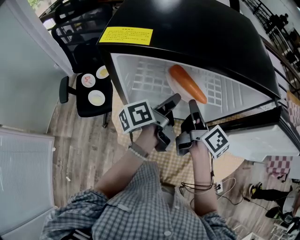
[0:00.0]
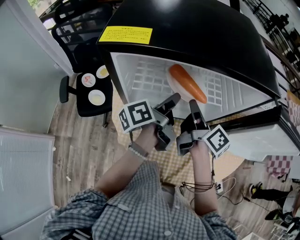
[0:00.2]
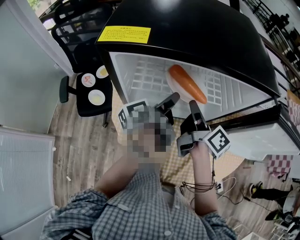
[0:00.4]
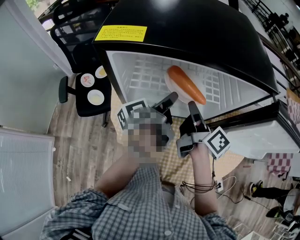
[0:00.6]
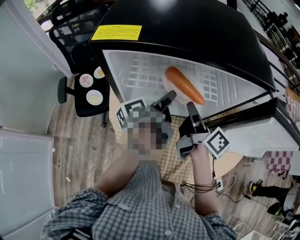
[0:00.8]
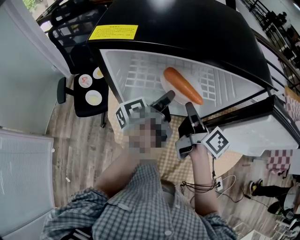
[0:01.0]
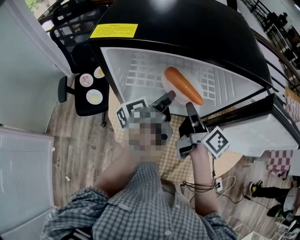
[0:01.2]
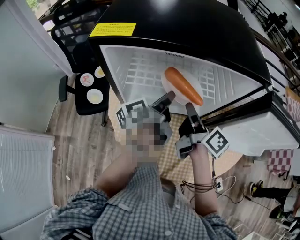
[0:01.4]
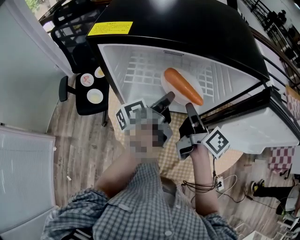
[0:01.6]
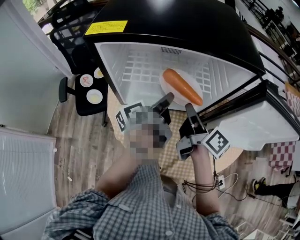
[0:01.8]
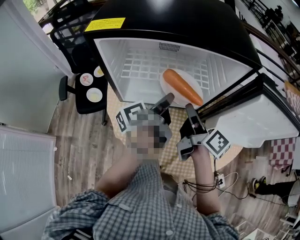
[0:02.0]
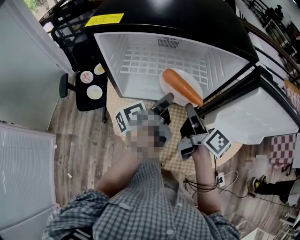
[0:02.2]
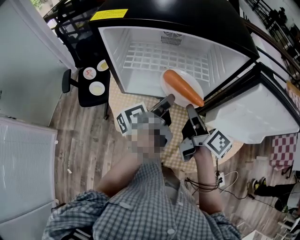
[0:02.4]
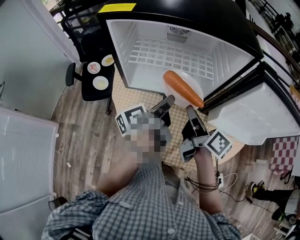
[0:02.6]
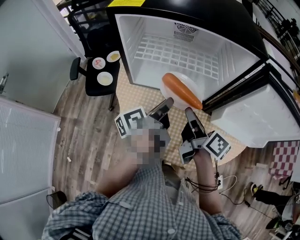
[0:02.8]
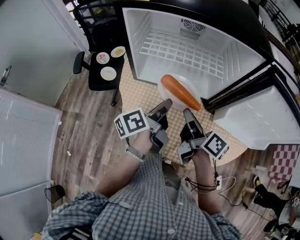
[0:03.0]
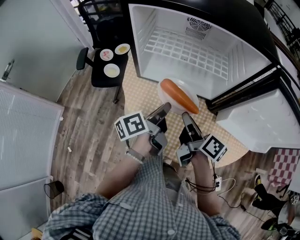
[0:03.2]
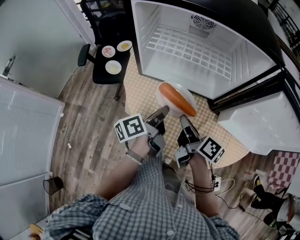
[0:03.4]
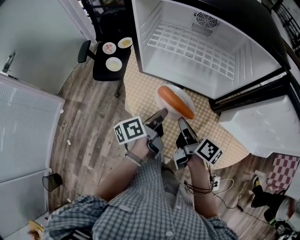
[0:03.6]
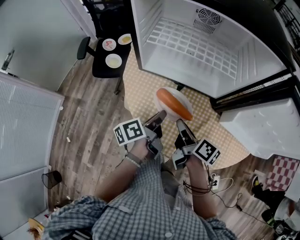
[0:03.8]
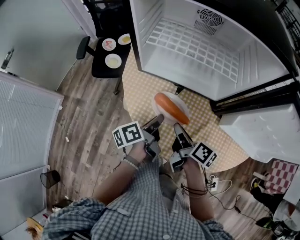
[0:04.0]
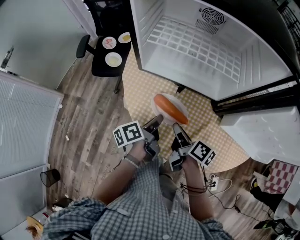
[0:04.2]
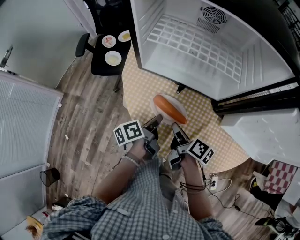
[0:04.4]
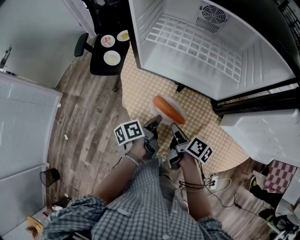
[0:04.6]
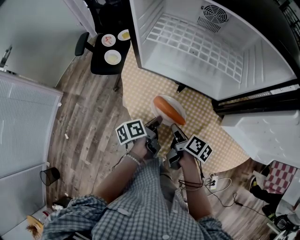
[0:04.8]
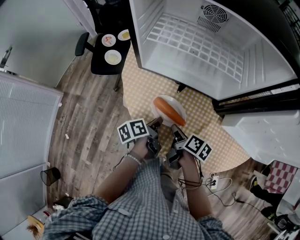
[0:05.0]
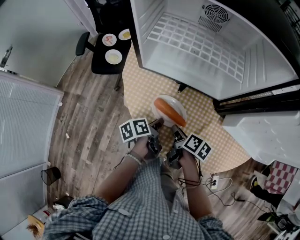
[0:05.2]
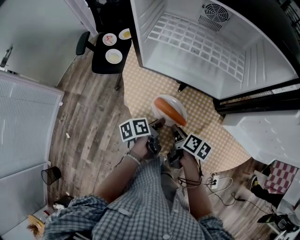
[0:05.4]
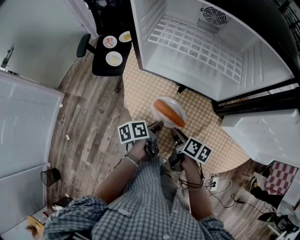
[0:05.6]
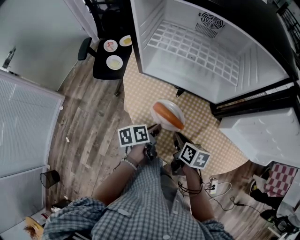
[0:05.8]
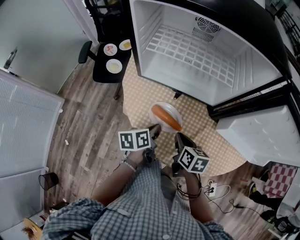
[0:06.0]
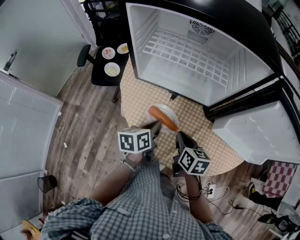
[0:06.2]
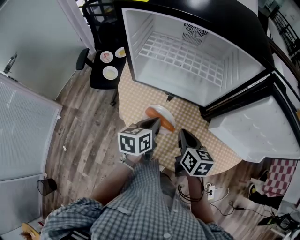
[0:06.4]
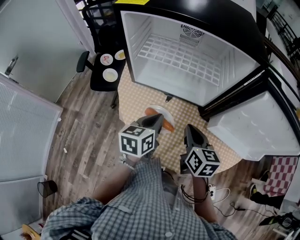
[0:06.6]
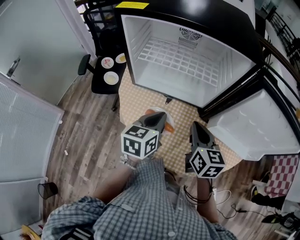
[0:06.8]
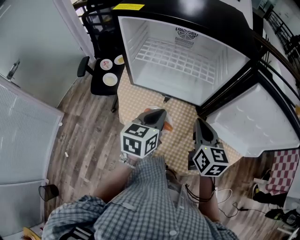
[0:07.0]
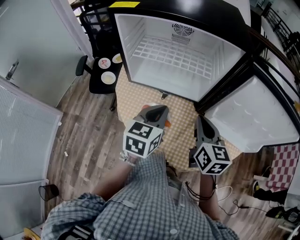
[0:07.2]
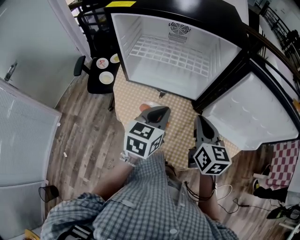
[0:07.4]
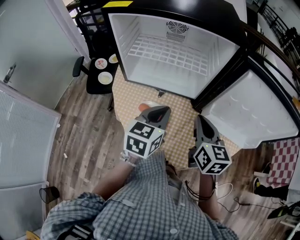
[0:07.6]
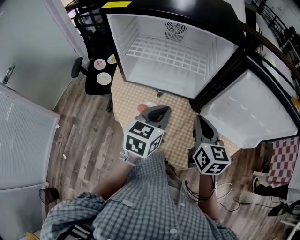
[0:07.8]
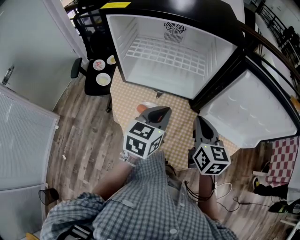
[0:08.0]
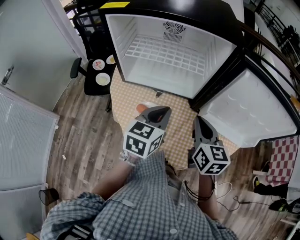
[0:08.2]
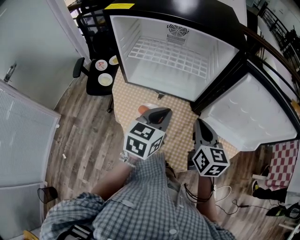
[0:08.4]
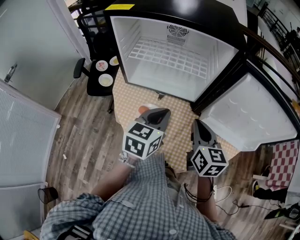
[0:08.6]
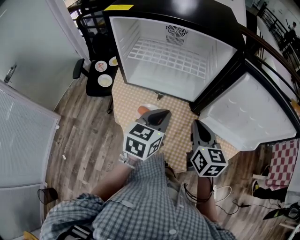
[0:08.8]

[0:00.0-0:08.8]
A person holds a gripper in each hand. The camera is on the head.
0:00.0 to 0:01.4: The grippers make only small movements.
0:01.4 to 0:03.0: Both grippers move backward, roughly 10 cm.
0:03.0 to 0:04.4: Both grippers travel together downward, about 15 cm. The right gripper rotates about 20 degrees.
0:04.4 to 0:05.8: The left gripper rotates approximately 20 degrees, while the right gripper changes its angle by some 30 degrees.
0:05.8 to 0:07.4: The grippers both shift upward and to the right by about 25 cm. The right gripper swivels approximately 40 degrees, while the left gripper rotates around the line of its fingers by approximately 60 degrees, clockwise from behind.
0:07.4 to 0:08.8: There are only small adjustments of the grippers.

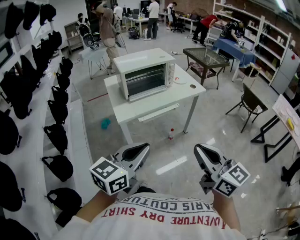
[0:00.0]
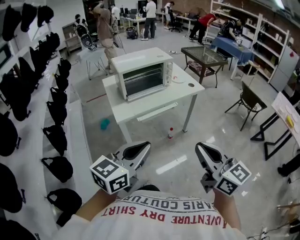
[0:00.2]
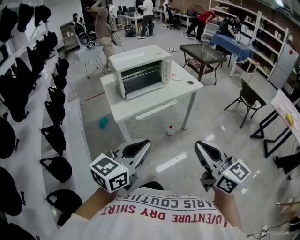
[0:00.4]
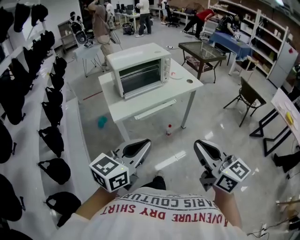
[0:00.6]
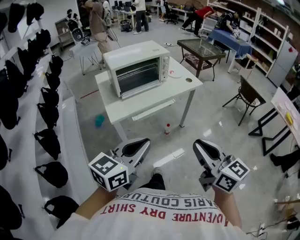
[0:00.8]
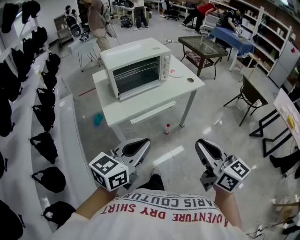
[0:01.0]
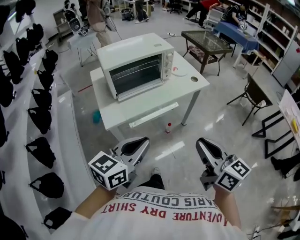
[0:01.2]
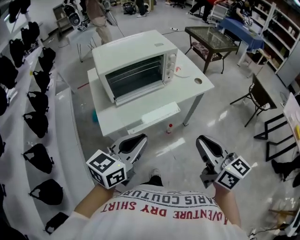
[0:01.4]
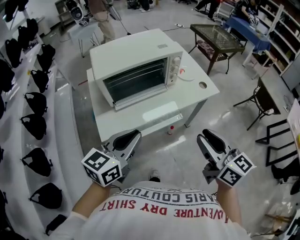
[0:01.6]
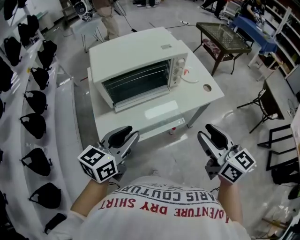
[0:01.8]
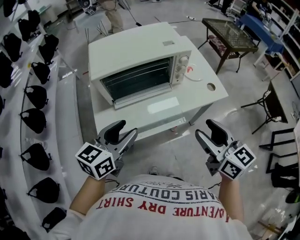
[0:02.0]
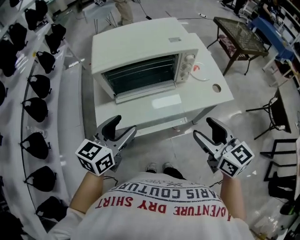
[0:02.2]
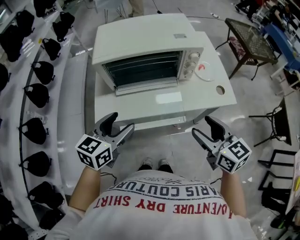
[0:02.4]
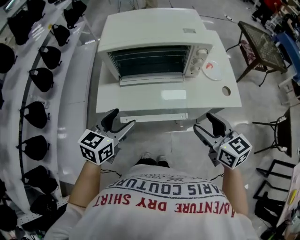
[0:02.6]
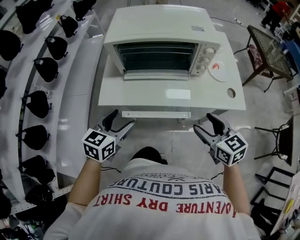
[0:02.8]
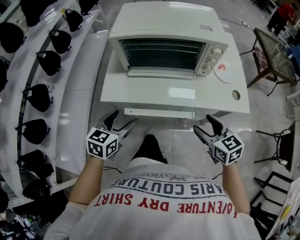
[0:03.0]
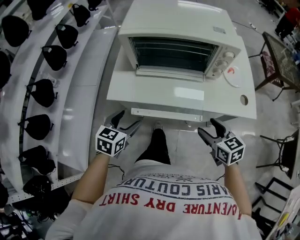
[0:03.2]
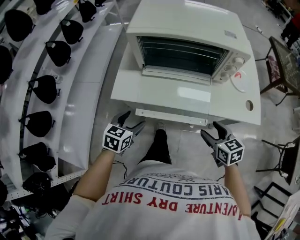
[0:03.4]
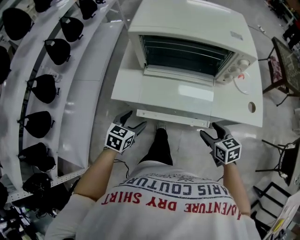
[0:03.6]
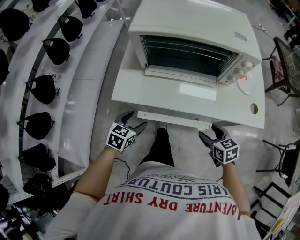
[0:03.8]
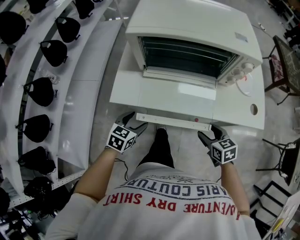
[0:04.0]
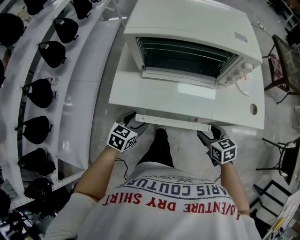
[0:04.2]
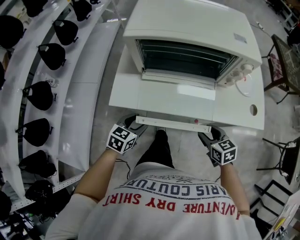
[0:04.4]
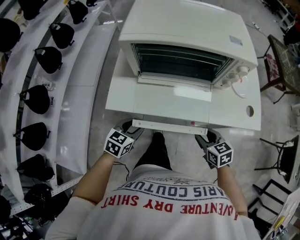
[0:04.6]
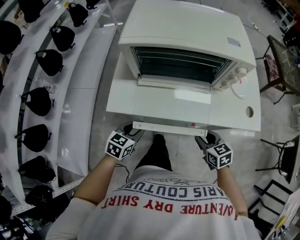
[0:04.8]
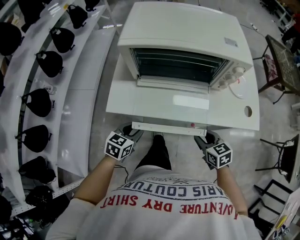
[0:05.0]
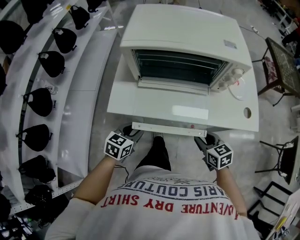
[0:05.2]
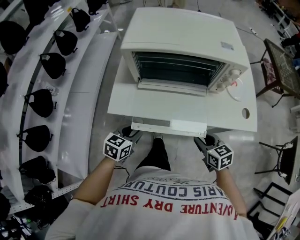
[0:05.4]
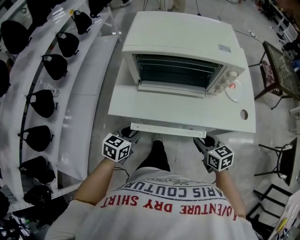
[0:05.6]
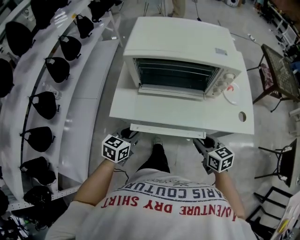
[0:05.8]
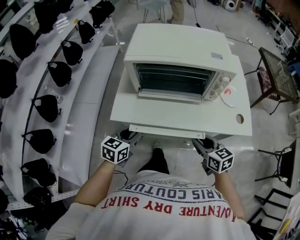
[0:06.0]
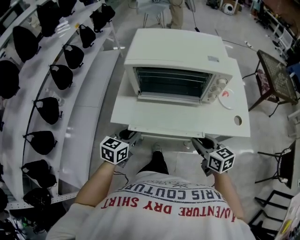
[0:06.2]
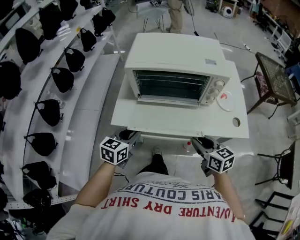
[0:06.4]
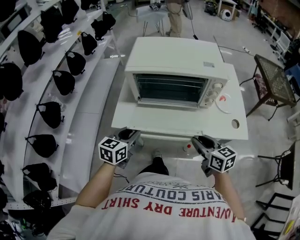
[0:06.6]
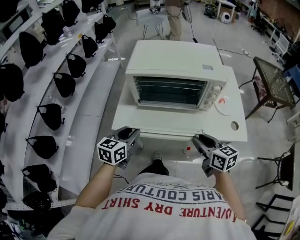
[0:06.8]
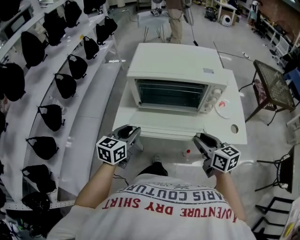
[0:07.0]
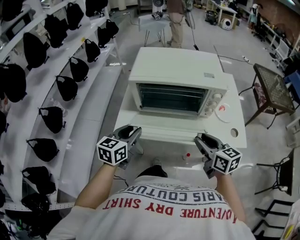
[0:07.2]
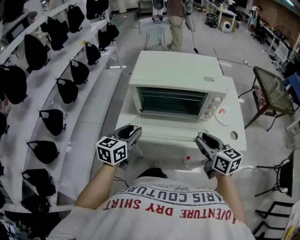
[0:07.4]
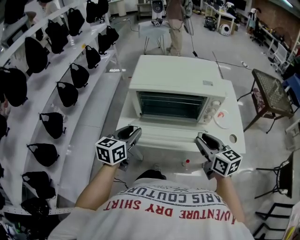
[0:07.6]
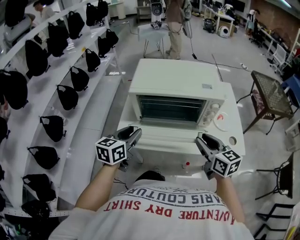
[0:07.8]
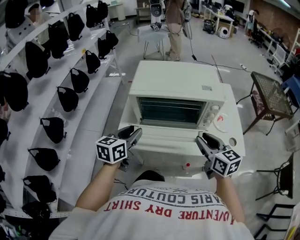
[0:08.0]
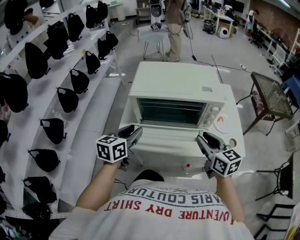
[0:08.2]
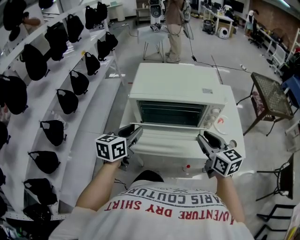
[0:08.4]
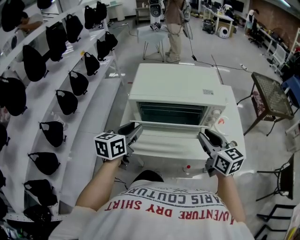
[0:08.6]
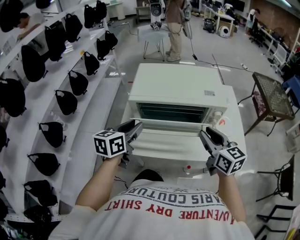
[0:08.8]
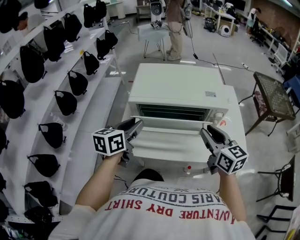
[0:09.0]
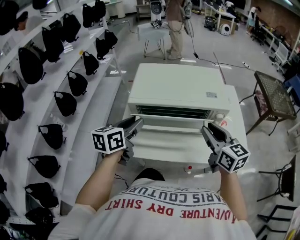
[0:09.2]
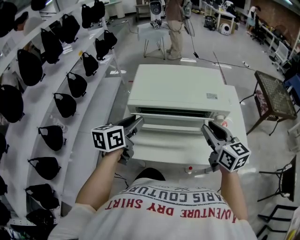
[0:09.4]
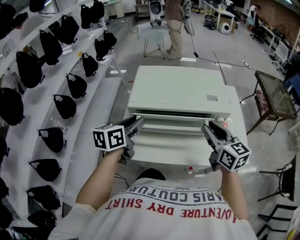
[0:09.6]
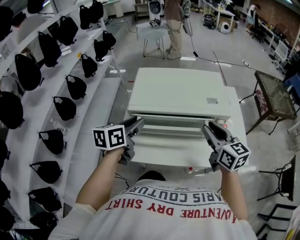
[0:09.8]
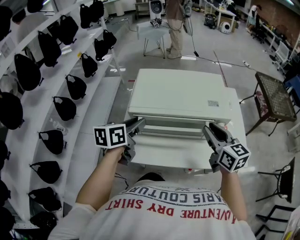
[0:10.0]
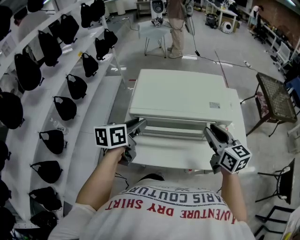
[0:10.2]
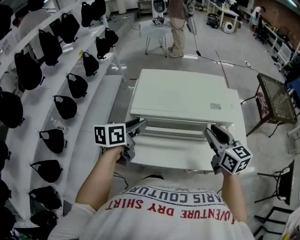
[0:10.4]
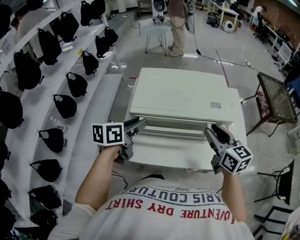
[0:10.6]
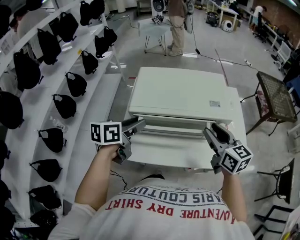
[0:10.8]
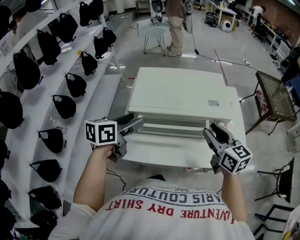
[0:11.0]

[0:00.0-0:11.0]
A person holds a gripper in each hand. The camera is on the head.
0:00.0 to 0:01.6: Both grippers travel together forward, roughly 30 cm.
0:01.6 to 0:03.2: The grippers both shift downward by some 20 cm. The right gripper changes its angle by some 40 degrees, and opens its fingers, while the left gripper turns by approximately 40 degrees, and opens up.
0:03.2 to 0:04.8: Both grippers travel together downward, some 10 cm. The left gripper closes its fingers, while the right gripper closes up.
0:04.8 to 0:06.2: Both grippers travel together upward, approximately 10 cm.
0:06.2 to 0:07.8: The two grippers go about 15 cm upward and forward.
0:07.8 to 0:09.4: The left gripper shifts roughly 10 cm forward; the right gripper moves forward and upward, some 10 cm.
0:09.4 to 0:11.0: The left gripper opens.

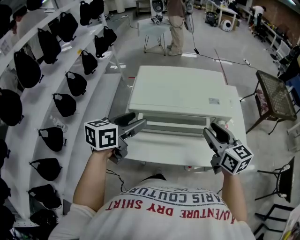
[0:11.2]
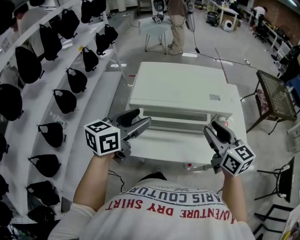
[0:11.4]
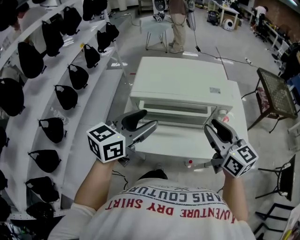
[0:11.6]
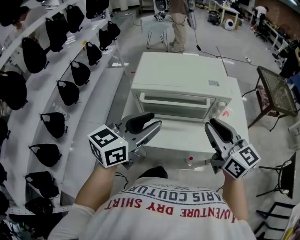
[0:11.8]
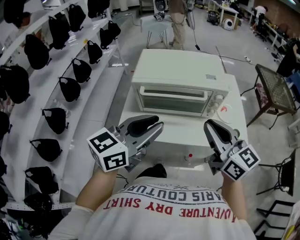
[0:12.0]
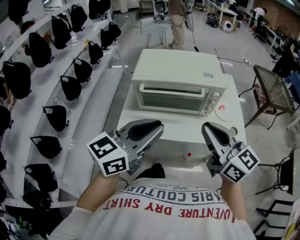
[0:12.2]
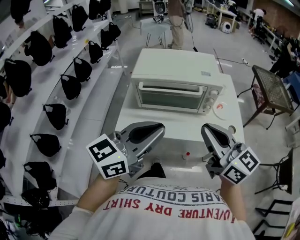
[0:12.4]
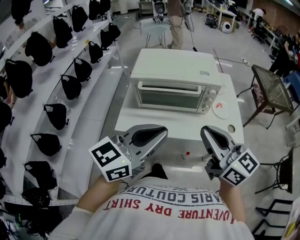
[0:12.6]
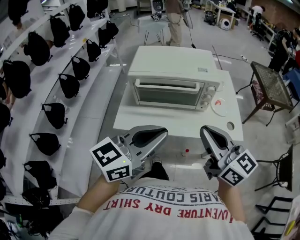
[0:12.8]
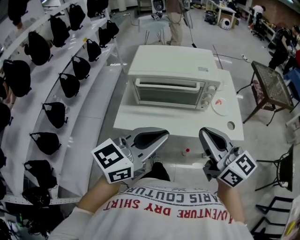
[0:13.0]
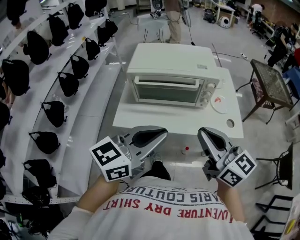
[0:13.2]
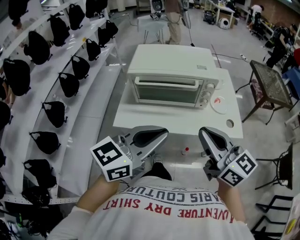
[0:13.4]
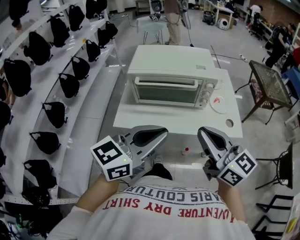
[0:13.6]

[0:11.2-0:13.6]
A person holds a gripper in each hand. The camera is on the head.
0:11.2 to 0:12.4: The right gripper goes approximately 20 cm backward and upward, changes its angle by some 20 degrees, and closes up. Meanwhile the left gripper moves backward and to the right, some 25 cm, rotates roughly 30 degrees, and closes its fingers.
0:12.4 to 0:13.6: The grippers stay close to where they were, moving slightly.

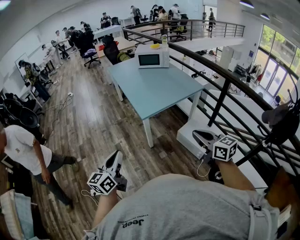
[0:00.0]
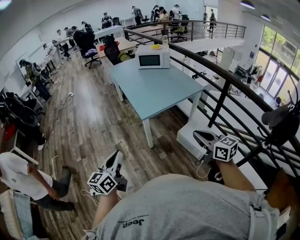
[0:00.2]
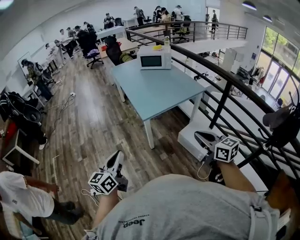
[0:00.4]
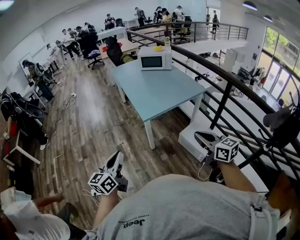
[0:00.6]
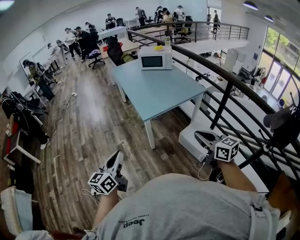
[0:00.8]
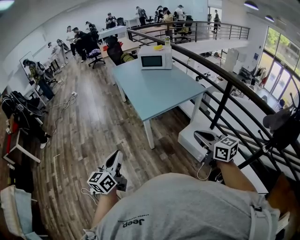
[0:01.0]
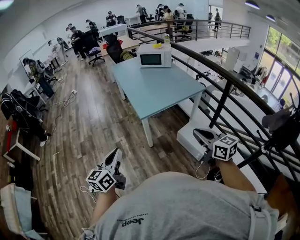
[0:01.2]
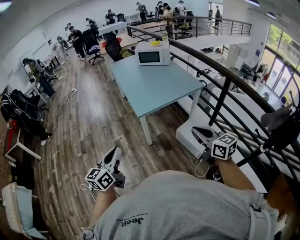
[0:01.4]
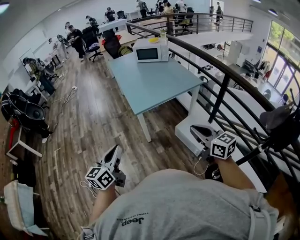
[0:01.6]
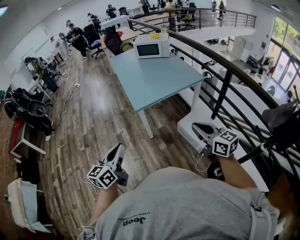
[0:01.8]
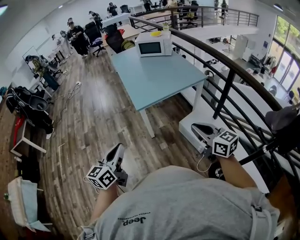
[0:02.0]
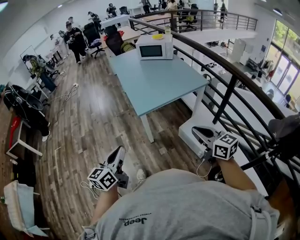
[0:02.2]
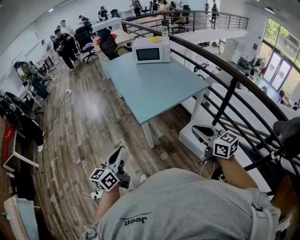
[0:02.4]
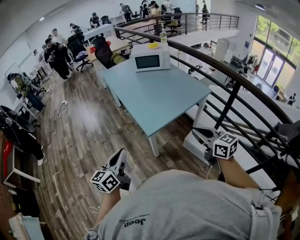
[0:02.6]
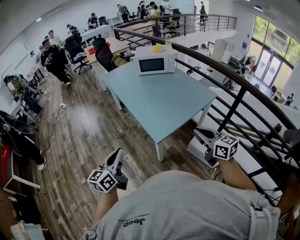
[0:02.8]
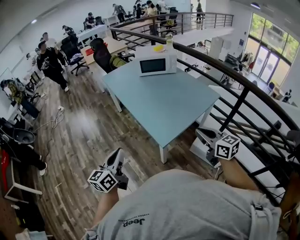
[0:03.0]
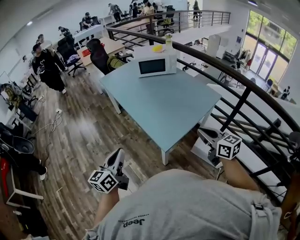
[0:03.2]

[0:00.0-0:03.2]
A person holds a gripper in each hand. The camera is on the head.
0:00.0 to 0:01.6: Both grippers travel together to the right, some 10 cm.
0:01.6 to 0:03.2: The grippers both shift forward and to the left by some 40 cm.
